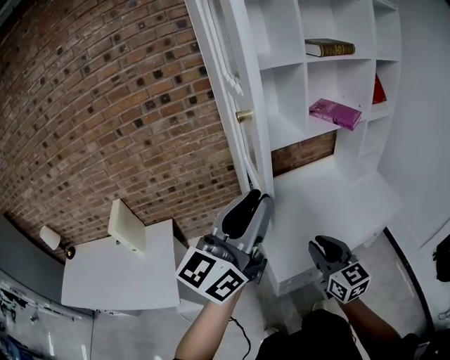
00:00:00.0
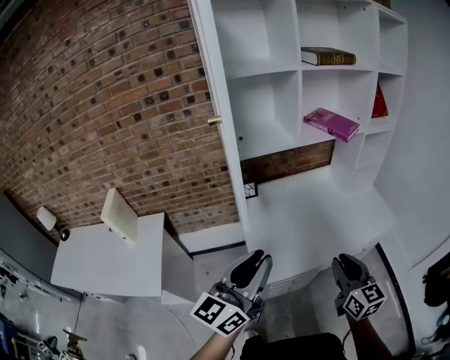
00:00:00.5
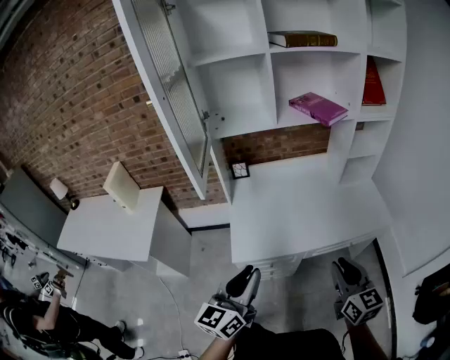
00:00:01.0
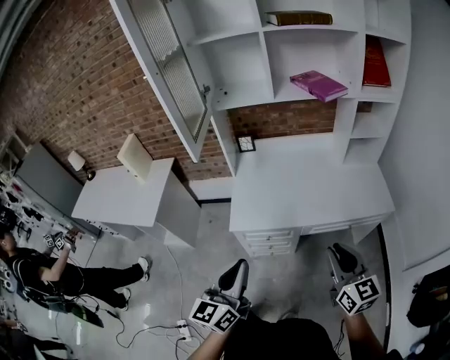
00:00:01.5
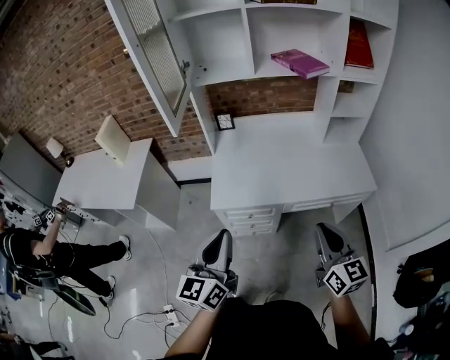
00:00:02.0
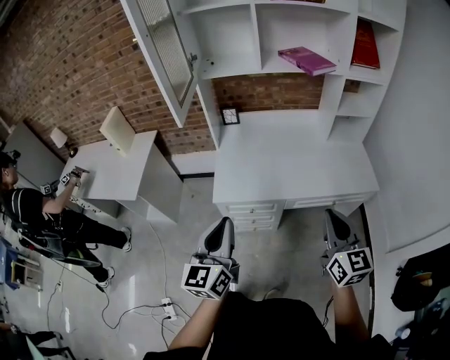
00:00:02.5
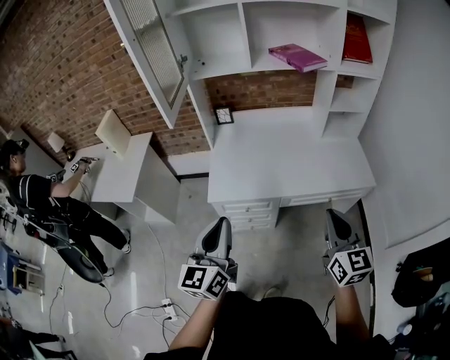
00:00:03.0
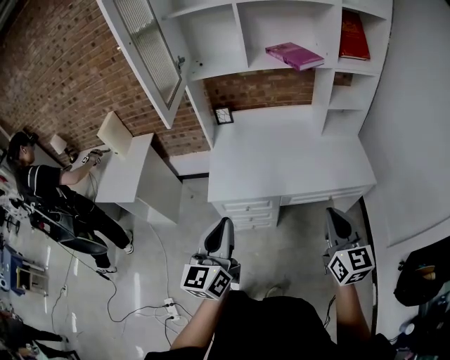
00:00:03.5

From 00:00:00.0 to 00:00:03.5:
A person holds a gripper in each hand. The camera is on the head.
From 00:00:00.0 to 00:00:02.0: The left gripper heads to the right, downward and backward, covering some 40 cm, and changes its angle by approximately 40 degrees. The right gripper shifts about 40 cm to the right and backward.
From 00:00:02.0 to 00:00:03.5: The right gripper moves to the right, about 5 cm.

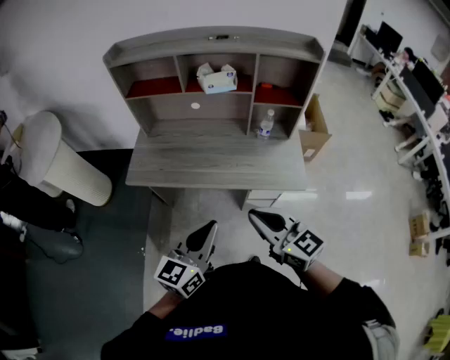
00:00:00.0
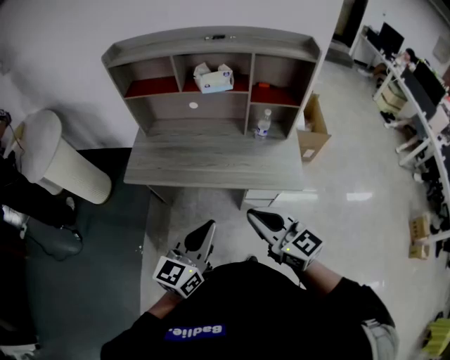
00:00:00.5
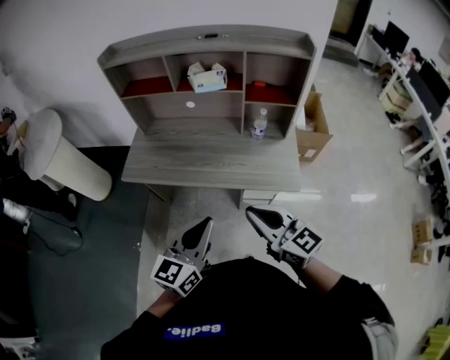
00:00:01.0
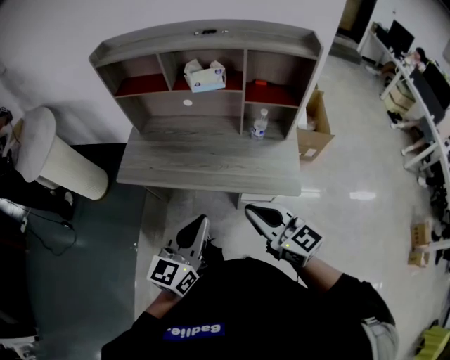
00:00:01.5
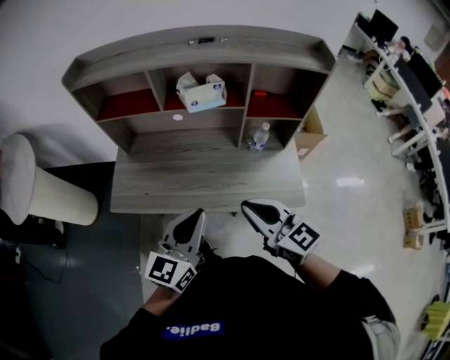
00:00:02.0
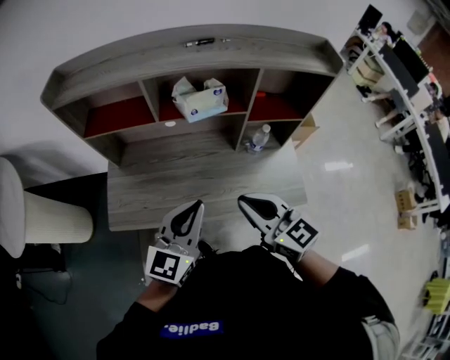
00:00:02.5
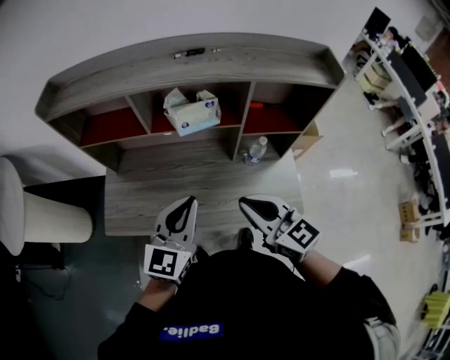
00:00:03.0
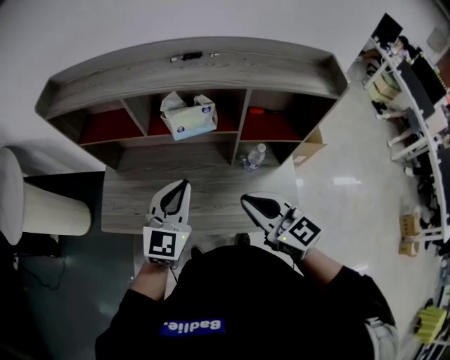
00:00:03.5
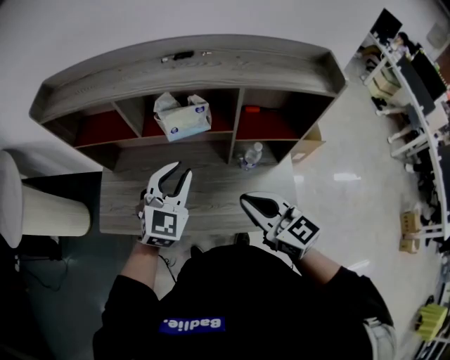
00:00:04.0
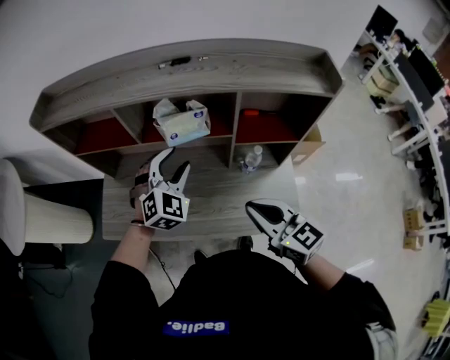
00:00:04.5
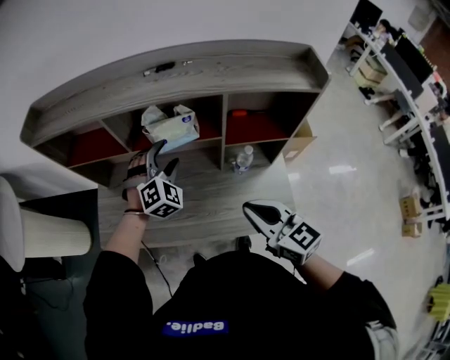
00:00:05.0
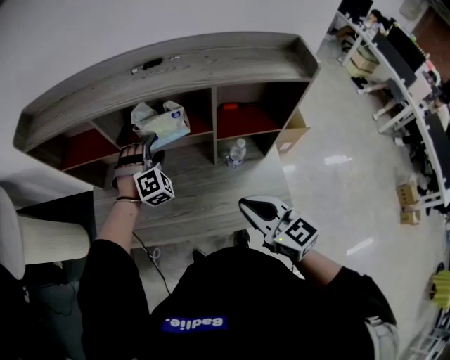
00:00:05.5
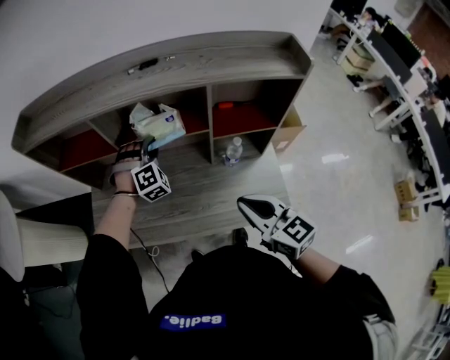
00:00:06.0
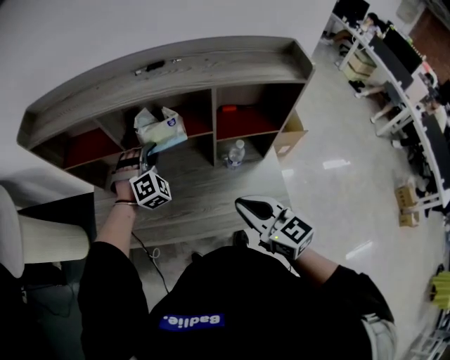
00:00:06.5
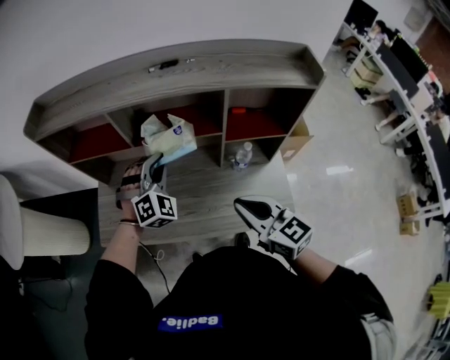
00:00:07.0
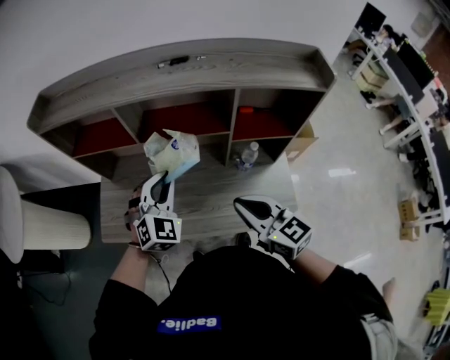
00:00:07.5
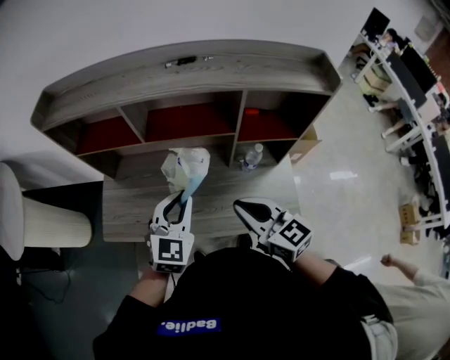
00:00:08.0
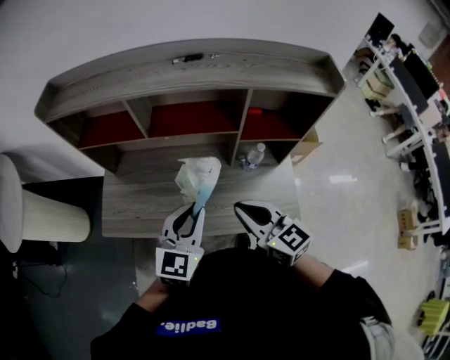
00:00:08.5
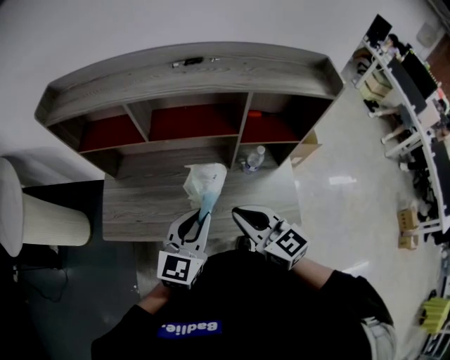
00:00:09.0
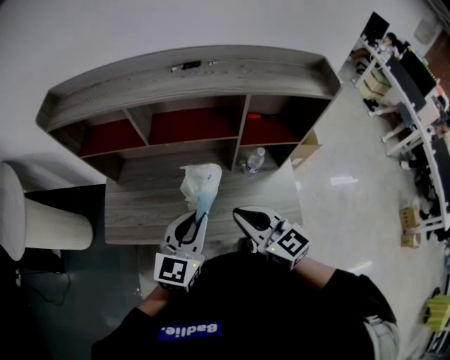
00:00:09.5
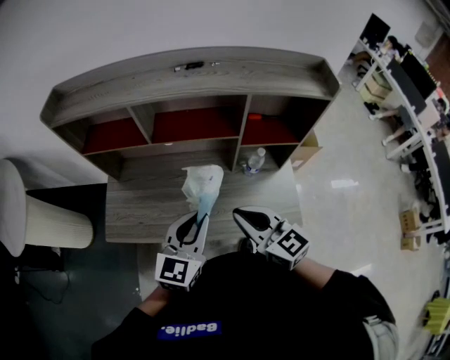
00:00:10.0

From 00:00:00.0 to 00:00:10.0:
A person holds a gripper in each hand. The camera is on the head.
From 00:00:00.0 to 00:00:02.0: The grippers both shift forward by approximately 15 cm.
From 00:00:02.0 to 00:00:04.0: The left gripper goes roughly 25 cm forward, and changes its angle by approximately 40 degrees; the right gripper heads forward and to the right, covering some 15 cm.
From 00:00:04.0 to 00:00:06.0: The left gripper is displaced forward and downward by approximately 15 cm, rotates around the line of its fingers by some 50 degrees, clockwise from behind, and opens, then closes again.
From 00:00:06.0 to 00:00:08.0: The right gripper moves to the left, roughly 5 cm. The left gripper moves backward, about 20 cm, and rolls counterclockwise, seen from behind, by some 60 degrees.
From 00:00:08.0 to 00:00:10.0: The left gripper travels backward by some 5 cm.

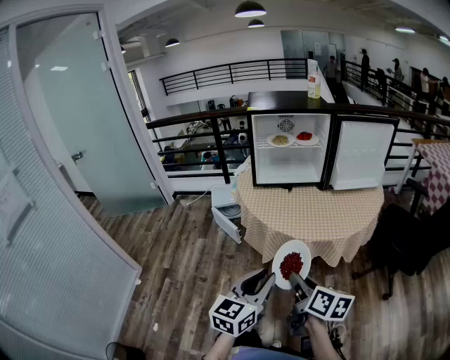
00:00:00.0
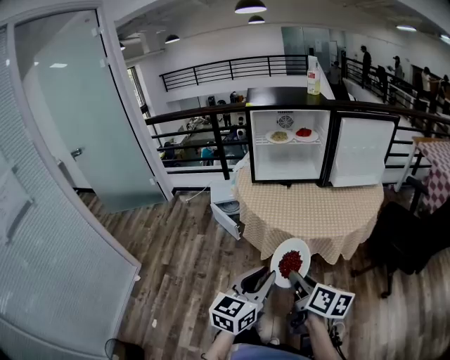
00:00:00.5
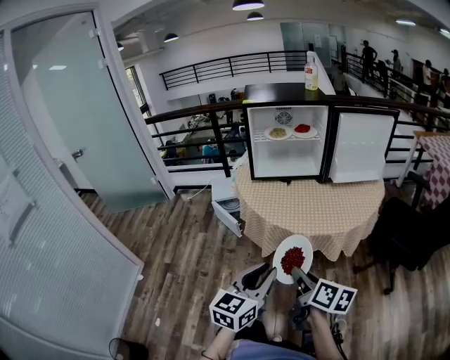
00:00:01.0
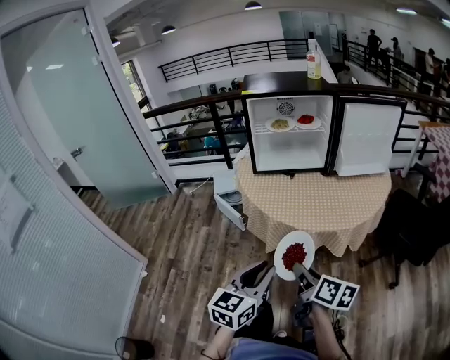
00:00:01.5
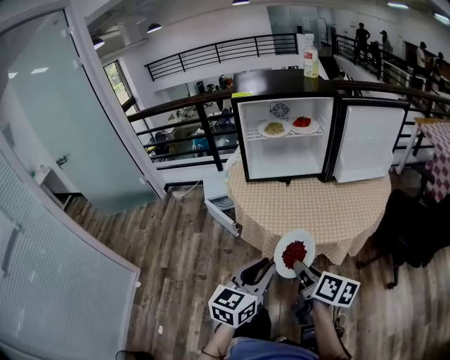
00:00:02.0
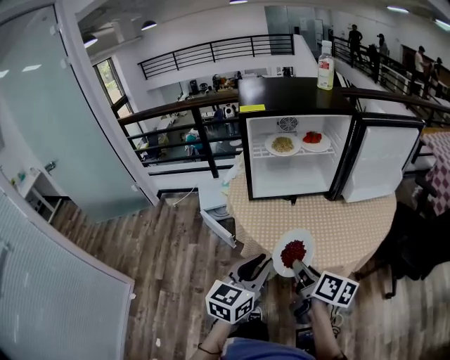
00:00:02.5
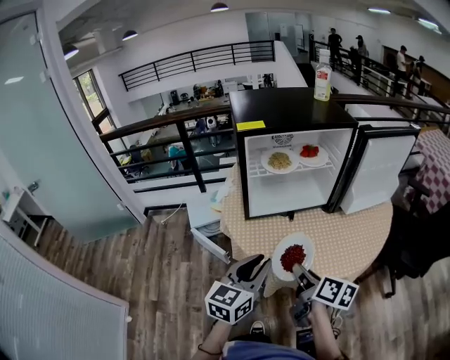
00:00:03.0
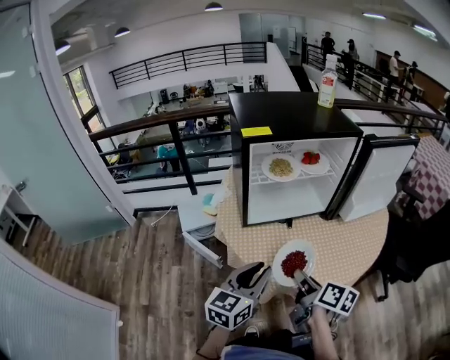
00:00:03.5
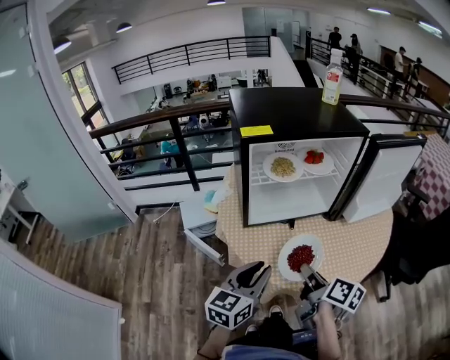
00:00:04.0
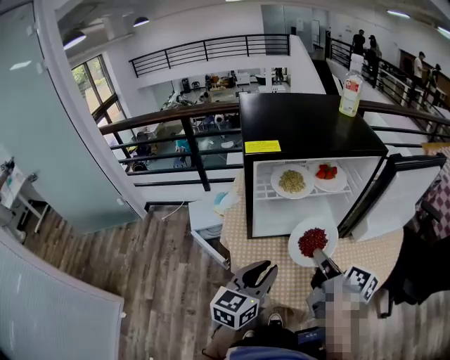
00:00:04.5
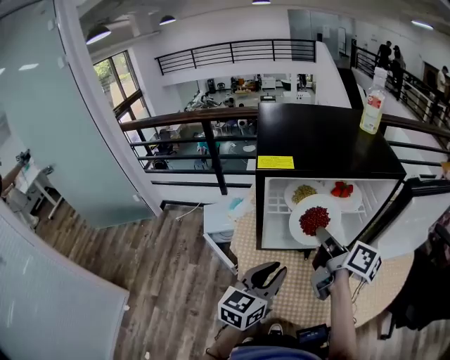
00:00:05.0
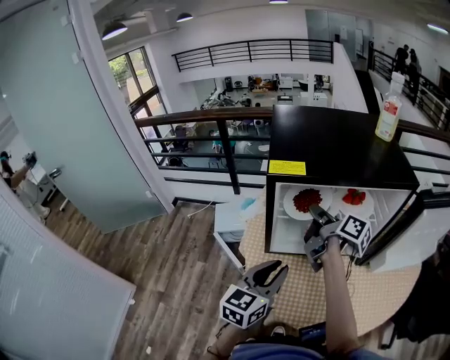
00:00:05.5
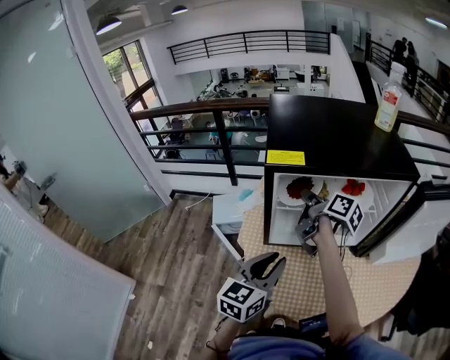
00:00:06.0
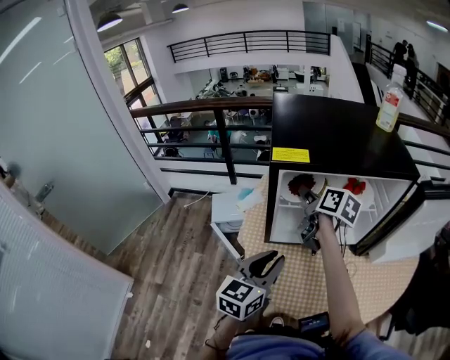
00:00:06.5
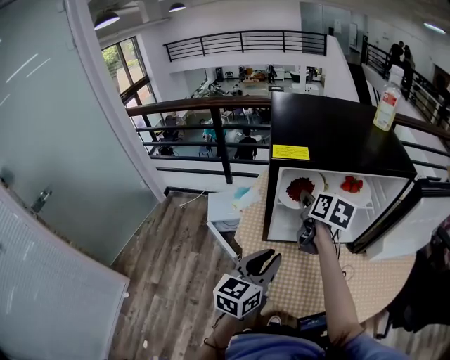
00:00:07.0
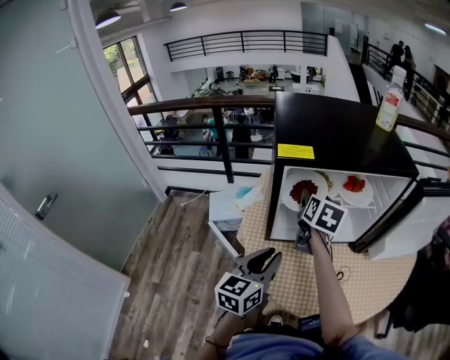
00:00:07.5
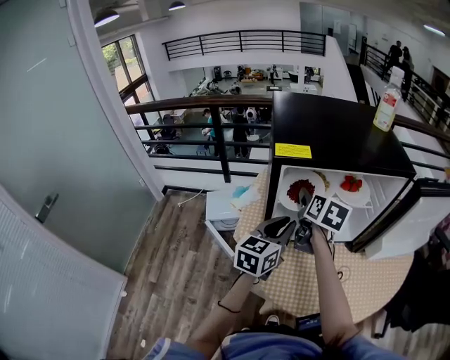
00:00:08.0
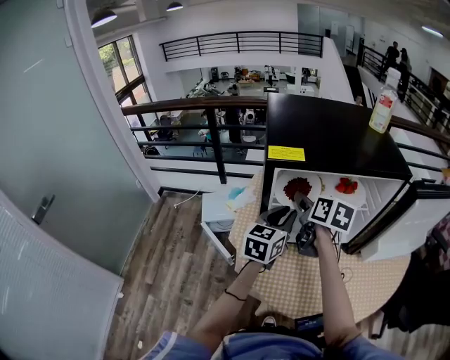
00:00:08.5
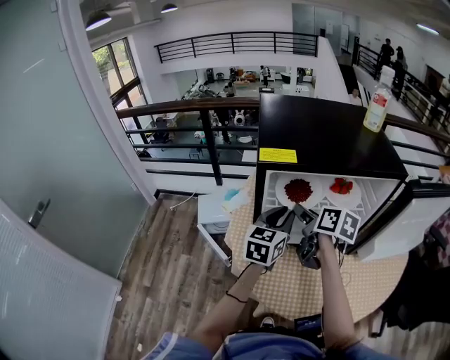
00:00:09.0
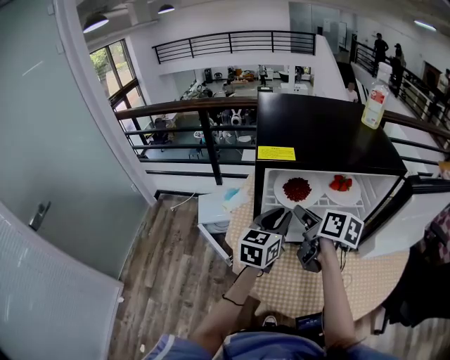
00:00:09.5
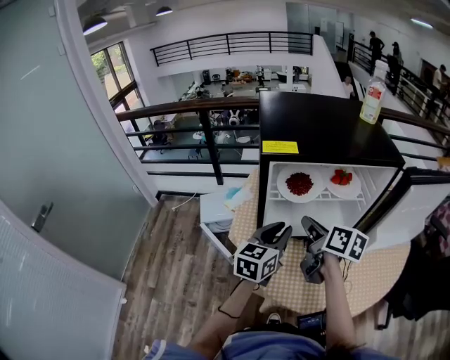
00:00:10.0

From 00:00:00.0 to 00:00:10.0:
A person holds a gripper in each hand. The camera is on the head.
From 00:00:00.0 to 00:00:02.0: Both grippers travel together forward, approximately 15 cm.
From 00:00:02.0 to 00:00:04.0: The left gripper goes about 25 cm forward and to the left. Meanwhile the right gripper heads forward, covering roughly 25 cm.
From 00:00:04.0 to 00:00:06.0: The right gripper shifts some 35 cm forward. The left gripper is displaced forward by approximately 15 cm.
From 00:00:06.0 to 00:00:08.0: The left gripper heads forward, covering about 10 cm, while the right gripper swivels roughly 40 degrees, and opens up.
From 00:00:08.0 to 00:00:10.0: The left gripper goes forward and returns, approximately 5 cm each way, while the right gripper moves backward, approximately 10 cm, swivels roughly 30 degrees, and closes its fingers.

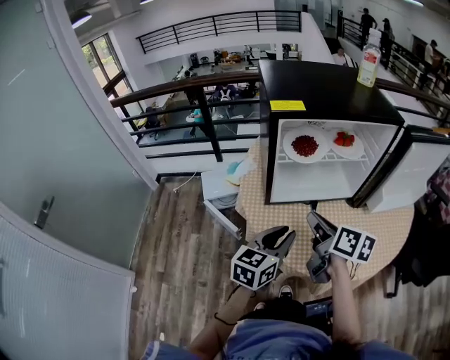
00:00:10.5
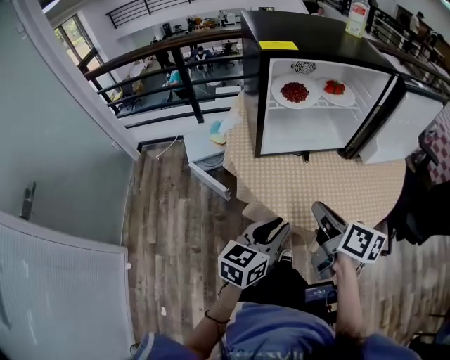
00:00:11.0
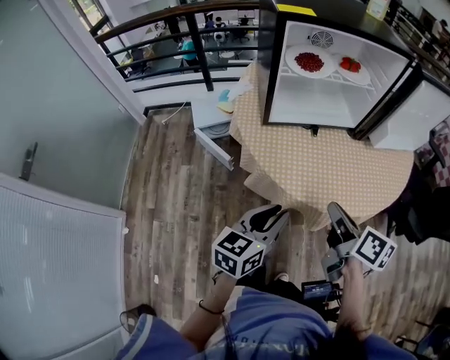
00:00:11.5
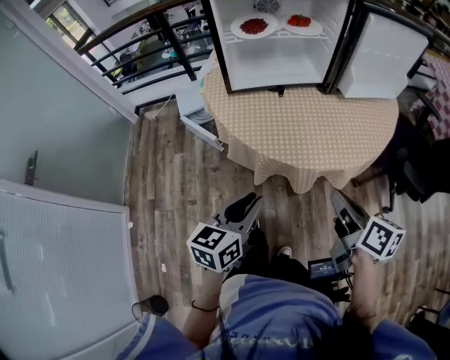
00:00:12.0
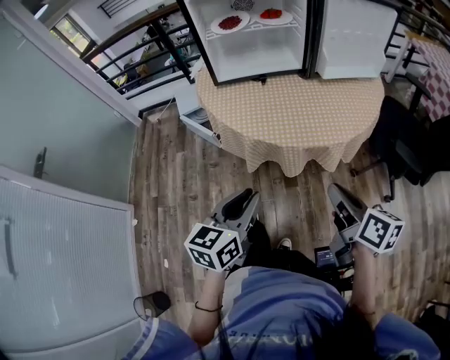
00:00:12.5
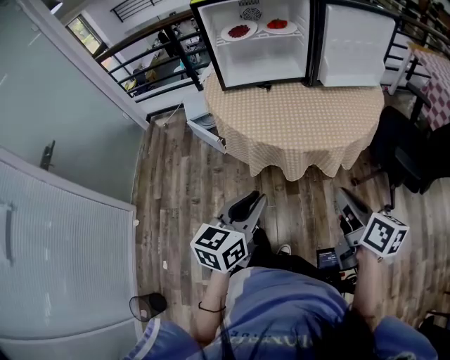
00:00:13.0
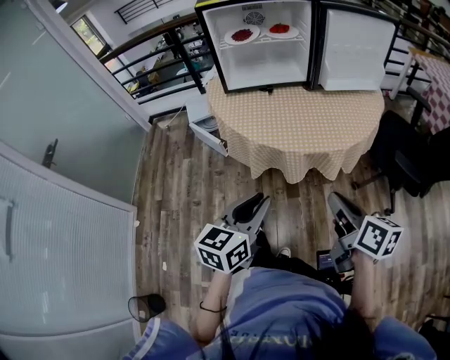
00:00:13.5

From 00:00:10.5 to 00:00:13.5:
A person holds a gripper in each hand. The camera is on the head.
From 00:00:10.5 to 00:00:12.0: The left gripper goes some 25 cm backward. Meanwhile the right gripper heads backward and to the right, covering some 35 cm.
From 00:00:12.0 to 00:00:13.5: The grippers both shift backward and to the right by roughly 15 cm.
